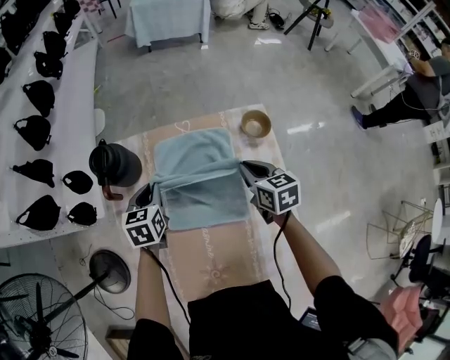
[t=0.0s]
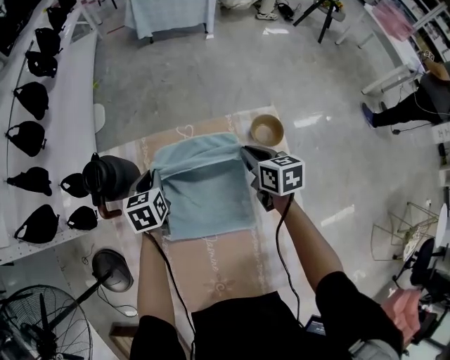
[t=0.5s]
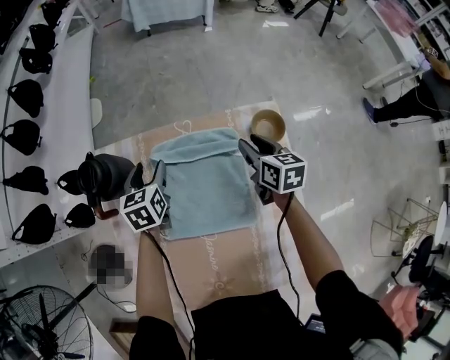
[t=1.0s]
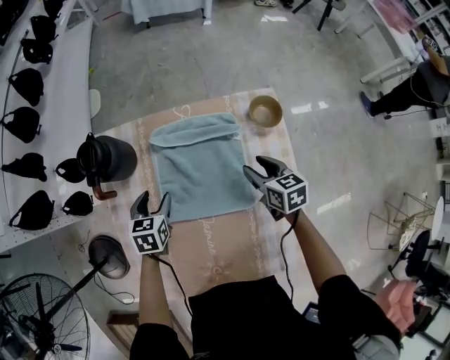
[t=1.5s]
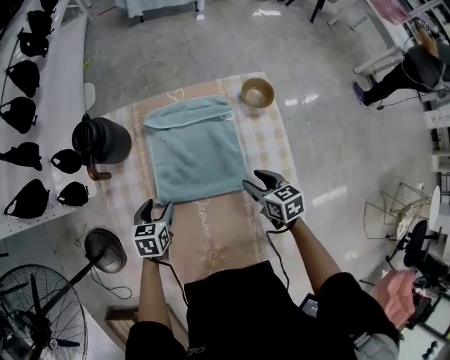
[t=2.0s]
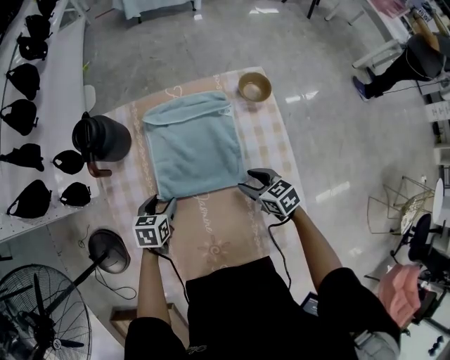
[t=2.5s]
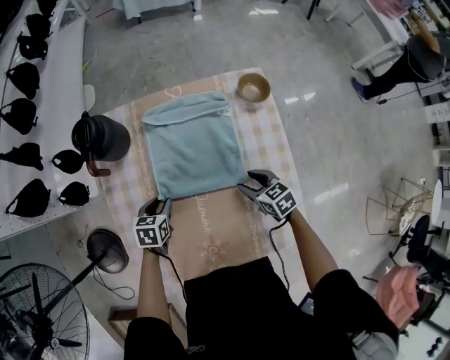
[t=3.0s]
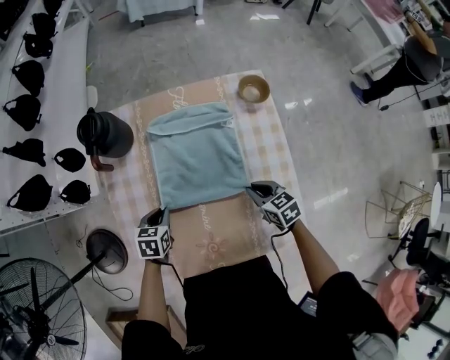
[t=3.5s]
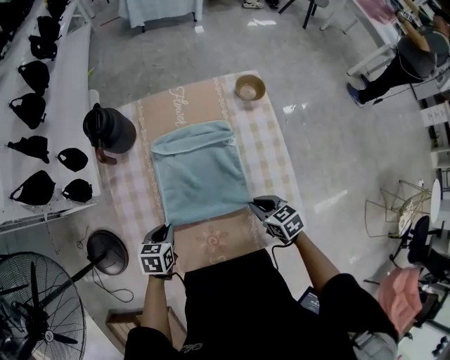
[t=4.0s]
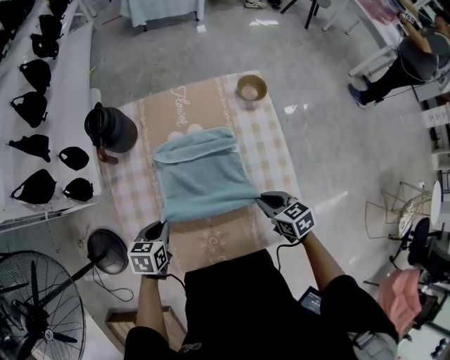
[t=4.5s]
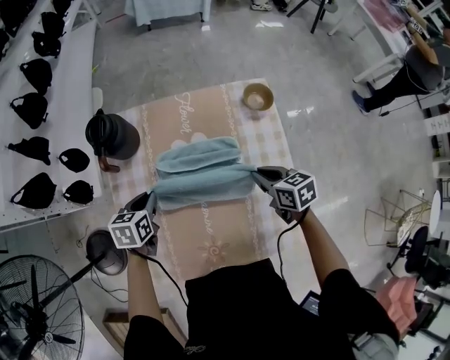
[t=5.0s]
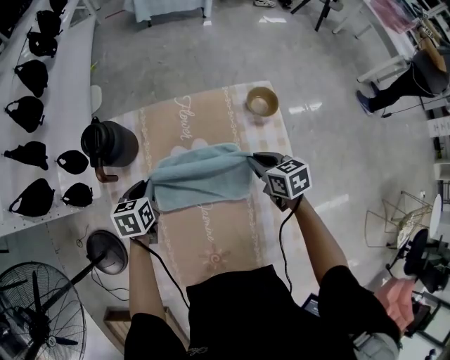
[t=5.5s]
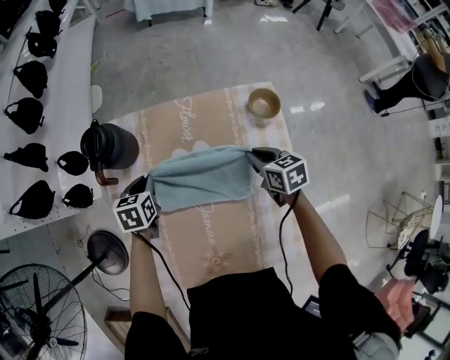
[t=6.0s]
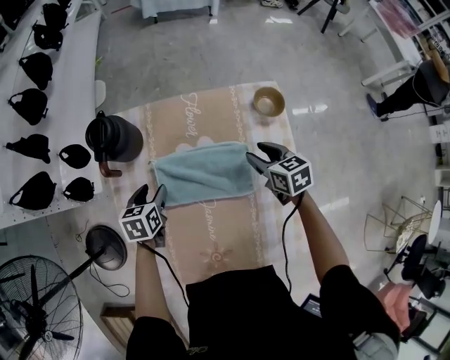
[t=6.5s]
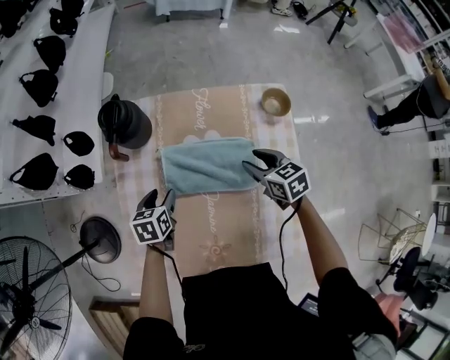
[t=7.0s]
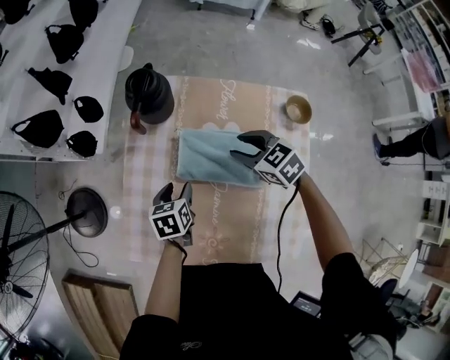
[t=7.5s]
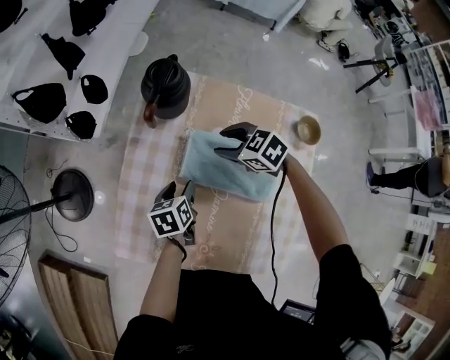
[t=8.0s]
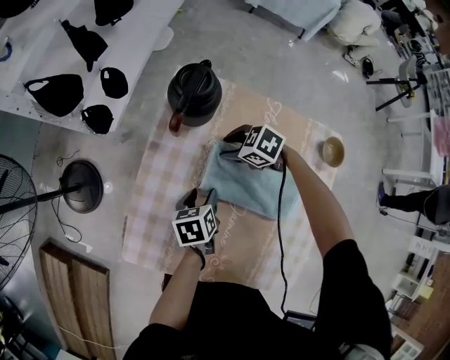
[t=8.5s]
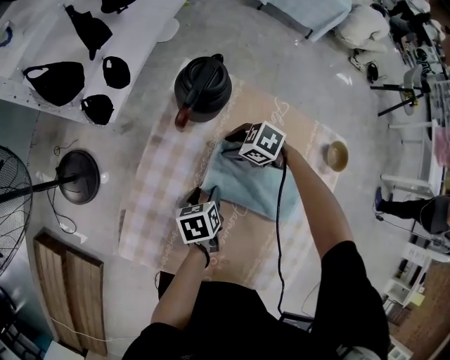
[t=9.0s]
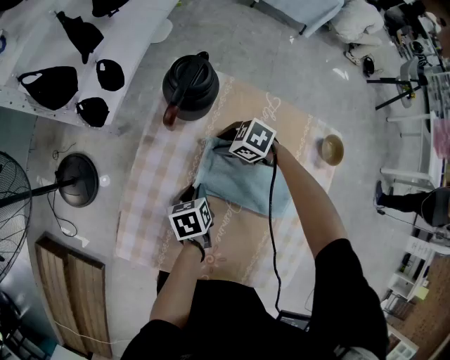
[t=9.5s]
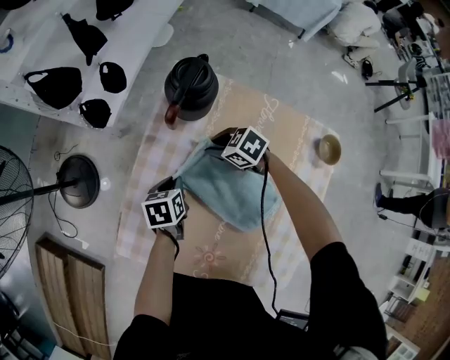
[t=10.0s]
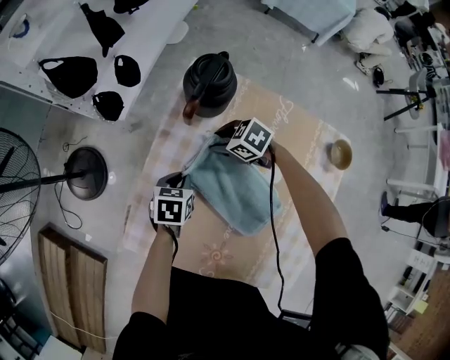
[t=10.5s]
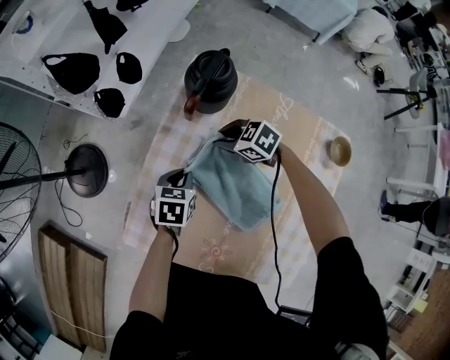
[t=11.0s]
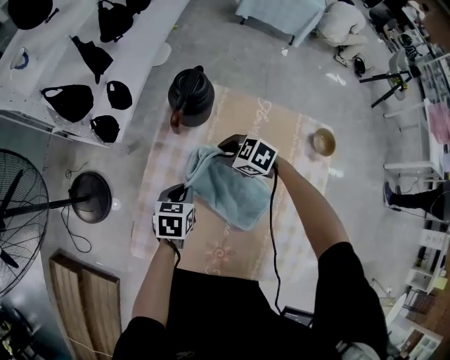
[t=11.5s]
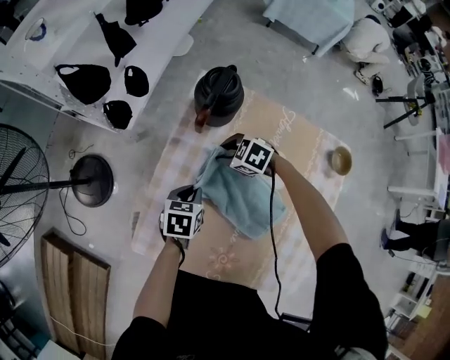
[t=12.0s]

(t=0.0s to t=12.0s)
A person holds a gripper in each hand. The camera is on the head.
t=0.0s - t=2.0s: Both grippers move backward and downward, approximately 15 cm. The right gripper opens. Meanwhile the left gripper opens.
t=2.0s - t=4.0s: The grippers both shift backward by approximately 15 cm. The right gripper closes its fingers, while the left gripper closes up.
t=4.0s - t=6.0s: Both grippers travel together forward, roughly 25 cm.
t=6.0s - t=8.0s: The left gripper shifts by about 15 cm, turns by roughly 30 degrees, and opens; the right gripper shifts by roughly 25 cm, changes its angle by about 60 degrees, and opens.
t=8.0s - t=10.0s: The left gripper shifts by about 10 cm, and closes up, while the right gripper heads downward, covering approximately 10 cm, and closes.

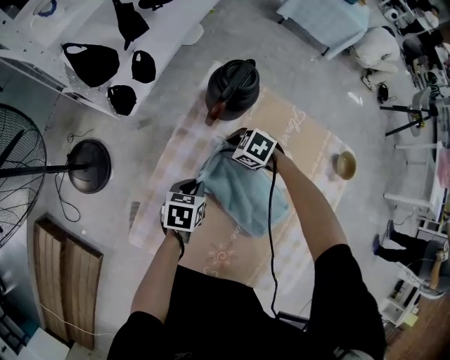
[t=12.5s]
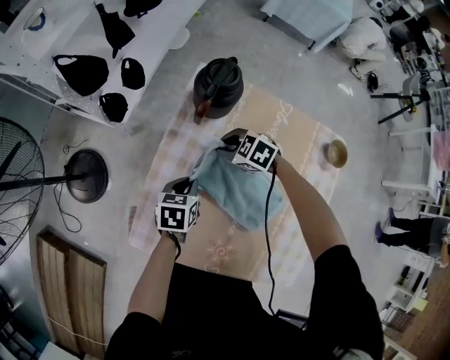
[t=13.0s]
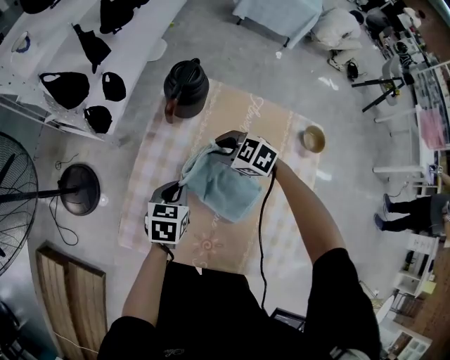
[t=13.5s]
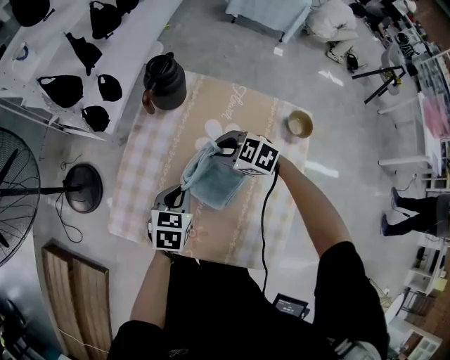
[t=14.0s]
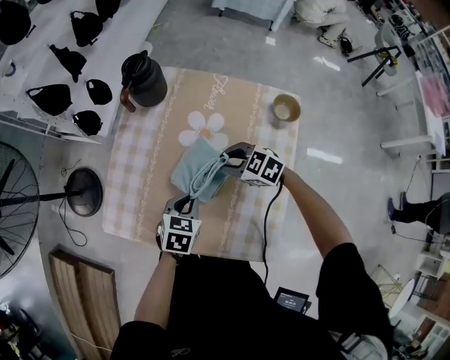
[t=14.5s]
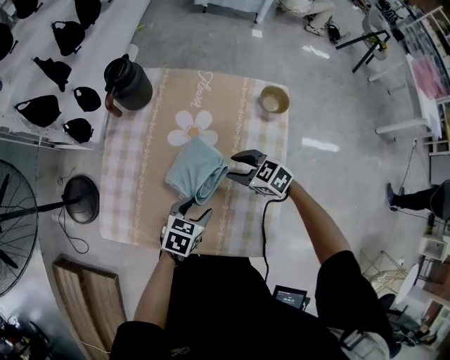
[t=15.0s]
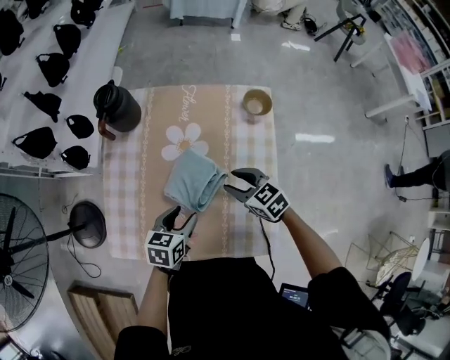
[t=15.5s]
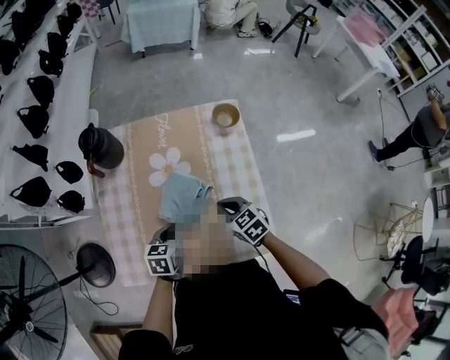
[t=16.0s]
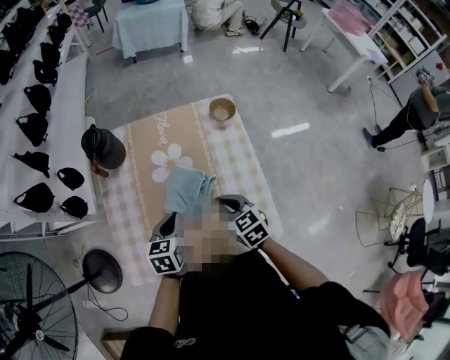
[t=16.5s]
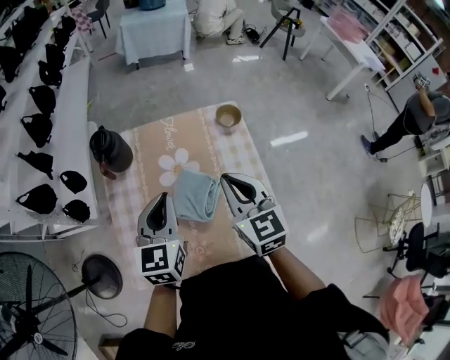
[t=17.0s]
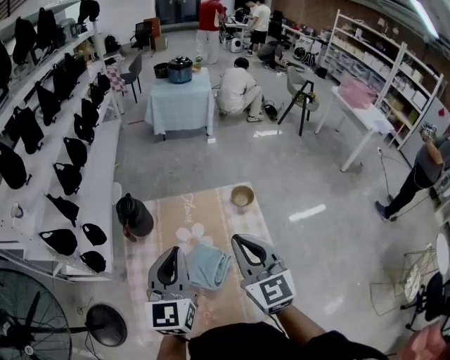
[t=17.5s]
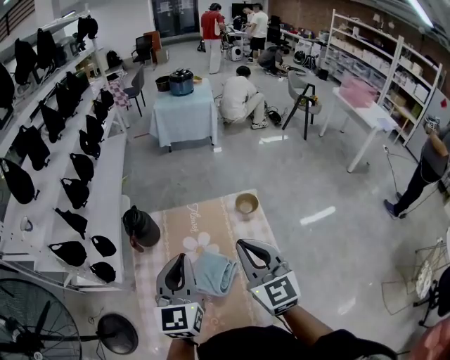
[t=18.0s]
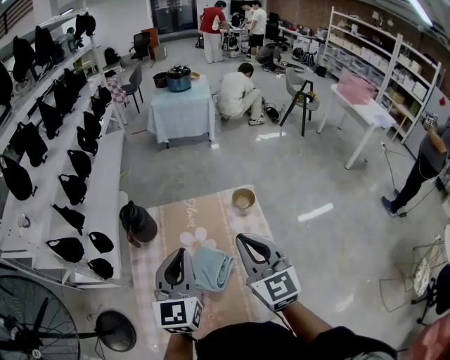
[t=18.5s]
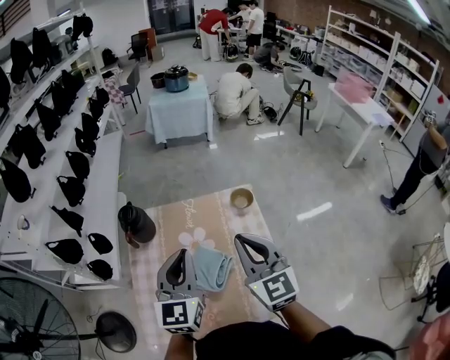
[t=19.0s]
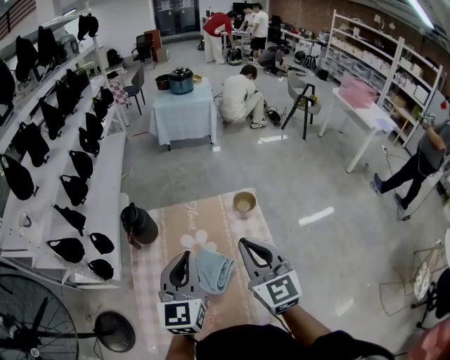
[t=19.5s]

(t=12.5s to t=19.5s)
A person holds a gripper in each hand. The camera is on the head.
t=12.5s - t=14.5s: The right gripper shifts by approximately 30 cm, and swivels some 20 degrees; the left gripper ends up about 25 cm from where it was, and swivels approximately 20 degrees.
t=14.5s - t=16.0s: The right gripper shifts by about 10 cm, and changes its angle by some 50 degrees; the left gripper opens and closes again.
t=16.0s - t=17.5s: Both grippers travel together upward, approximately 30 cm. The left gripper tips its fingers upward by approximately 40 degrees; the right gripper tilts its fingers approximately 40 degrees upward.
t=17.5s - t=19.5s: There are only small adjustments of the grippers.

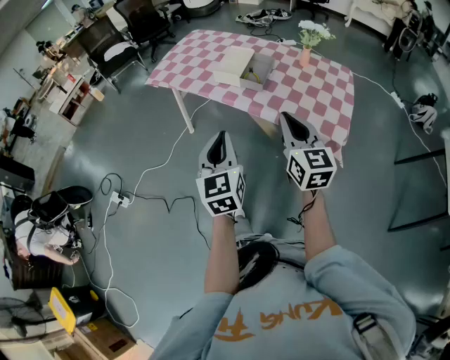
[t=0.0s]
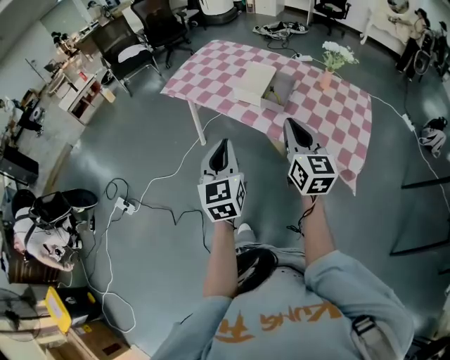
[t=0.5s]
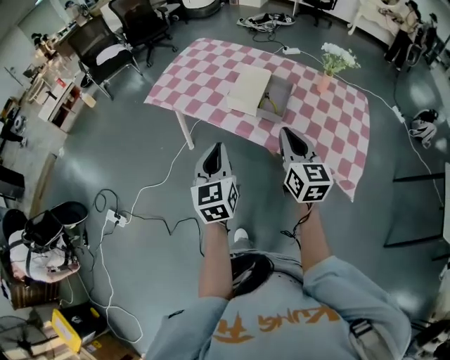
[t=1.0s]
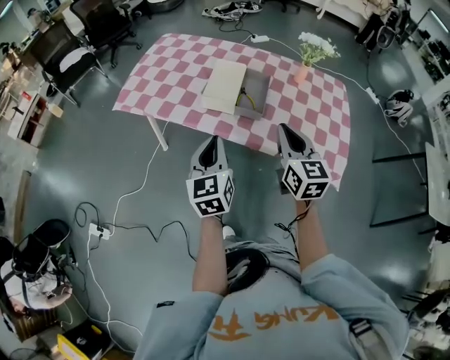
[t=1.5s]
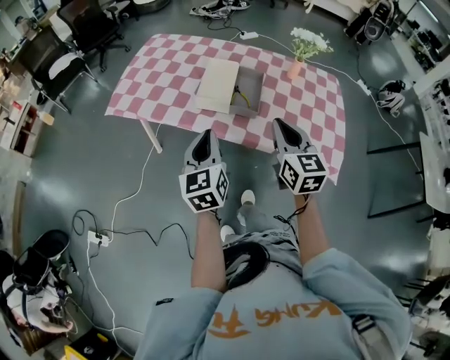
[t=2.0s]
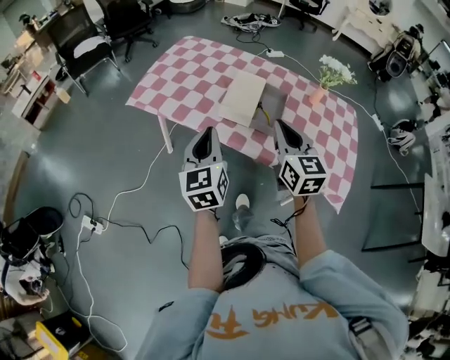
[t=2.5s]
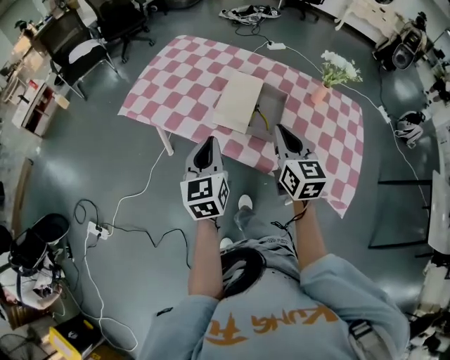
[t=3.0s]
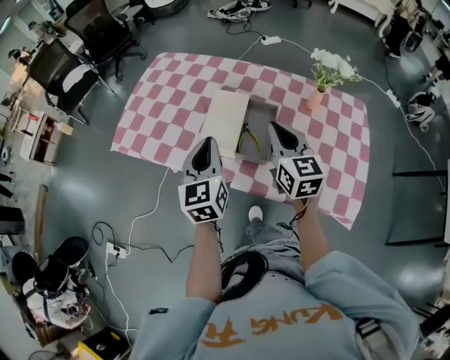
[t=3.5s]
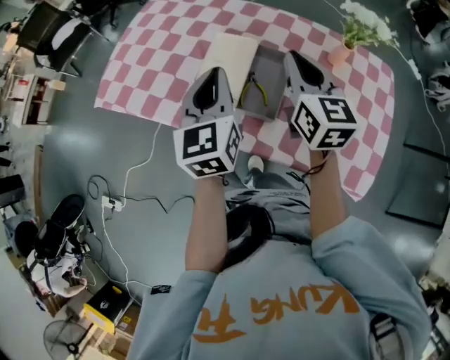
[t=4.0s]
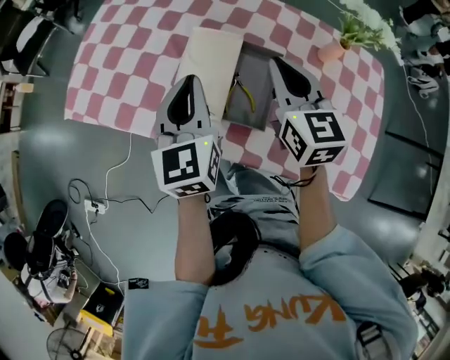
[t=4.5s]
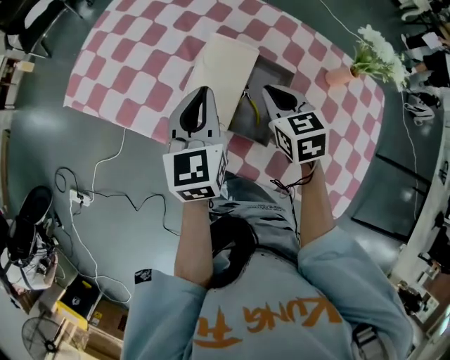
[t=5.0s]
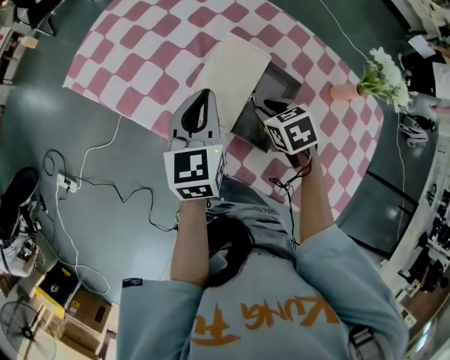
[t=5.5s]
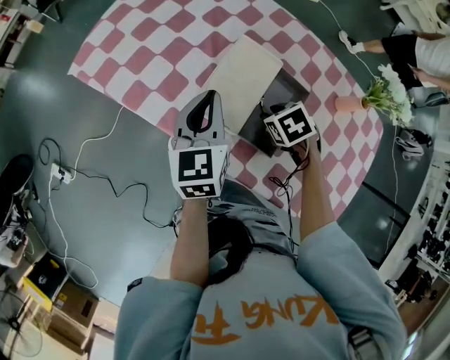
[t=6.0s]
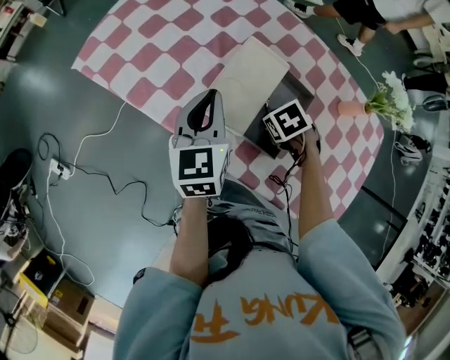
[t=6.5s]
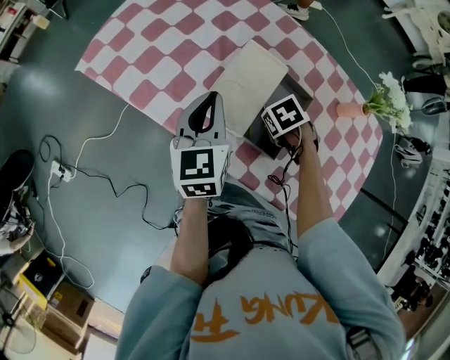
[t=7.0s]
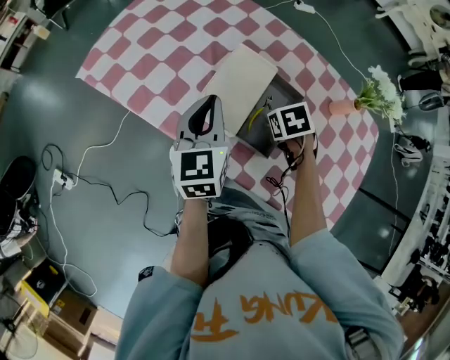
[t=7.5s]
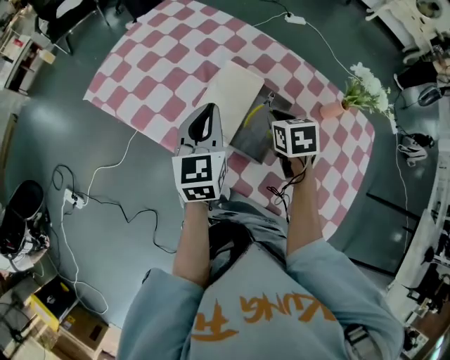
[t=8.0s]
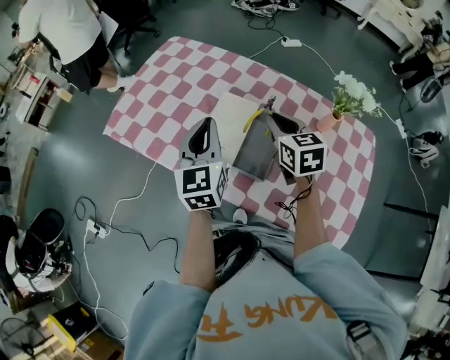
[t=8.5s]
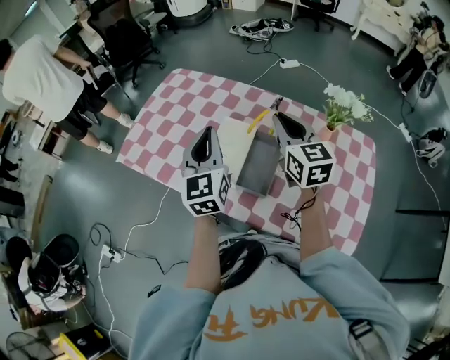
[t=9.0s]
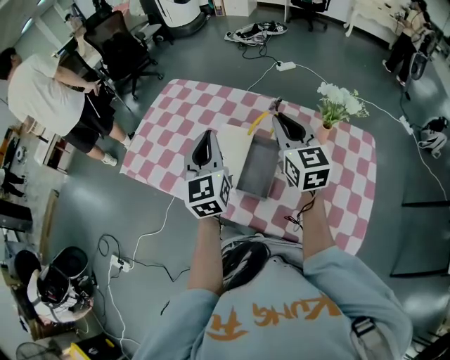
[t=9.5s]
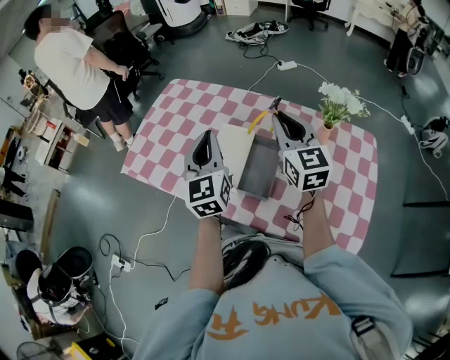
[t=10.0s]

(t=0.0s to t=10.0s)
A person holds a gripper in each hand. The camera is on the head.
t=0.0s - t=2.0s: Both grippers travel together forward, roughly 25 cm.
t=2.0s - t=4.0s: The left gripper travels forward and to the right by approximately 25 cm, while the right gripper travels forward by roughly 30 cm.
t=4.0s - t=6.0s: The left gripper is displaced downward by about 10 cm. The right gripper goes approximately 25 cm downward, angles its fingers downward, by some 60 degrees, and opens.
t=6.0s - t=8.0s: The right gripper is displaced upward by about 10 cm, changes its angle by roughly 30 degrees, and closes up. The left gripper heads upward, covering roughly 5 cm.
t=8.0s - t=10.0s: The right gripper moves upward, some 25 cm, and tilts its fingers roughly 50 degrees upward. Meanwhile the left gripper moves upward, about 10 cm.
